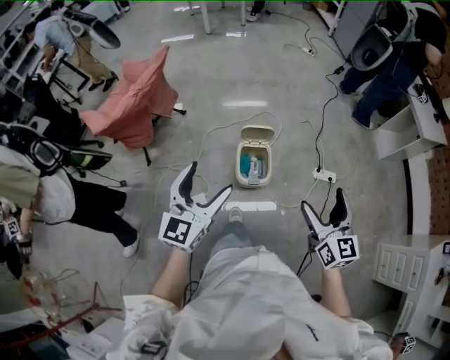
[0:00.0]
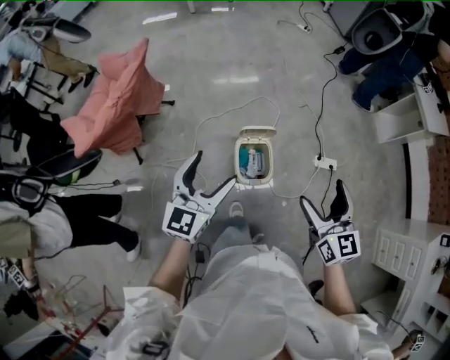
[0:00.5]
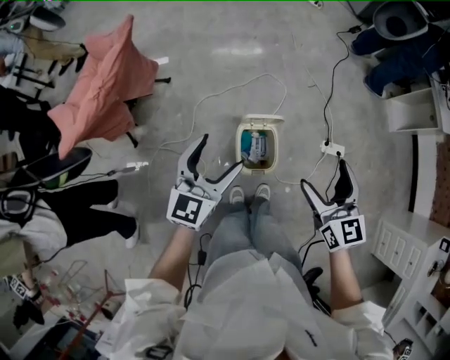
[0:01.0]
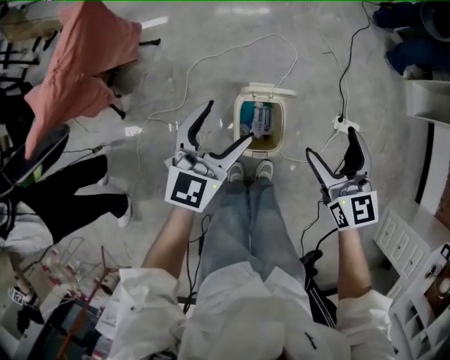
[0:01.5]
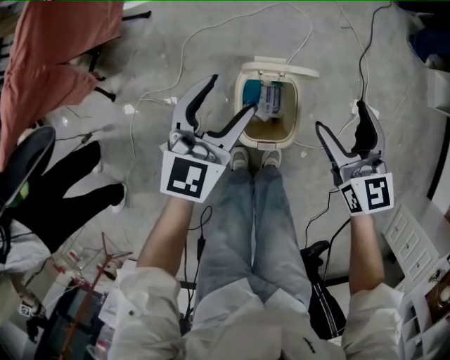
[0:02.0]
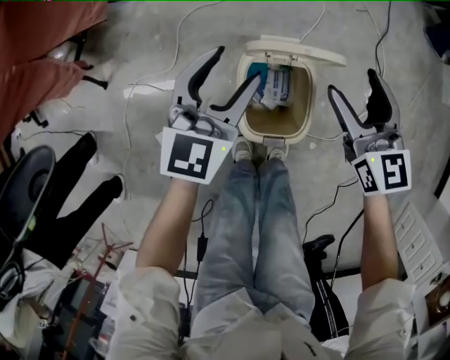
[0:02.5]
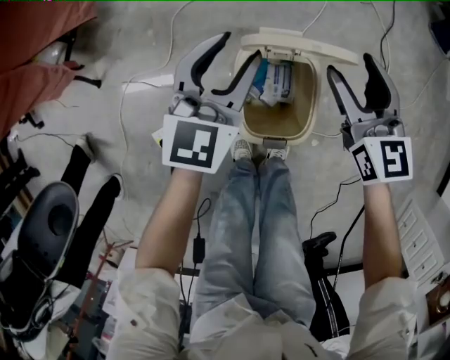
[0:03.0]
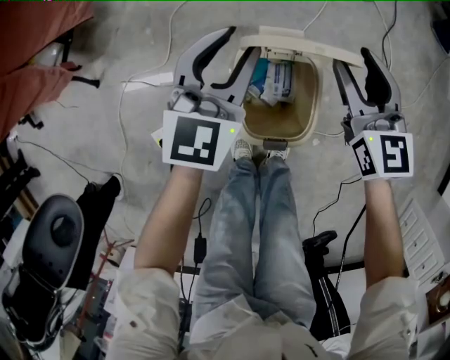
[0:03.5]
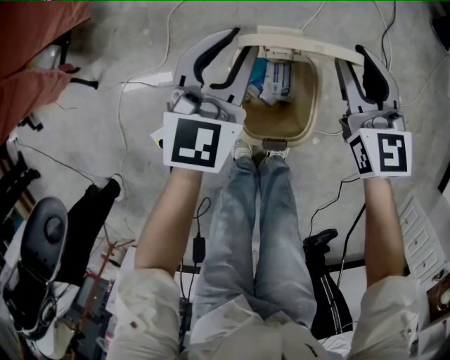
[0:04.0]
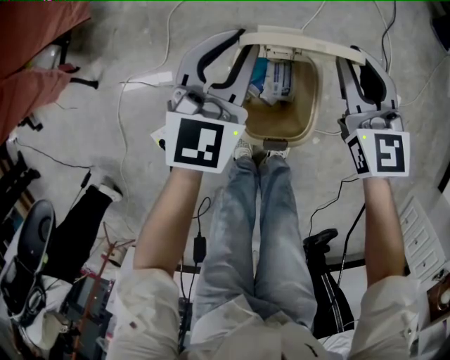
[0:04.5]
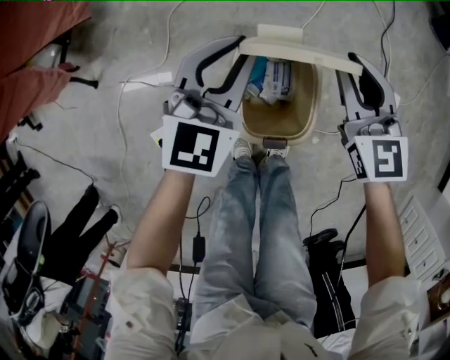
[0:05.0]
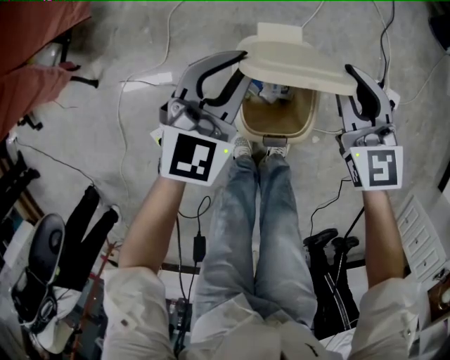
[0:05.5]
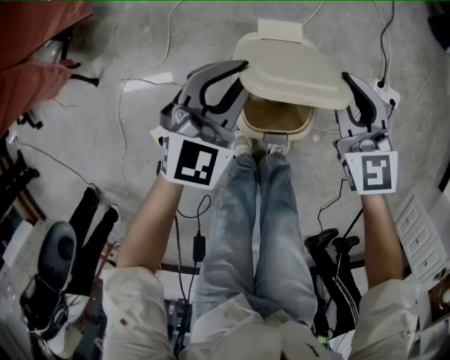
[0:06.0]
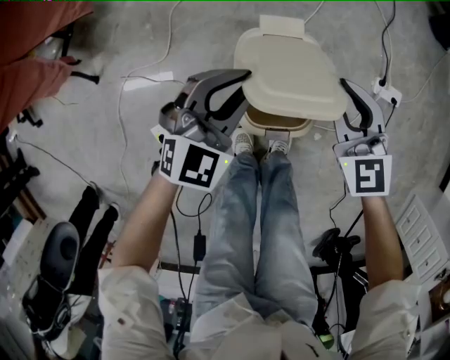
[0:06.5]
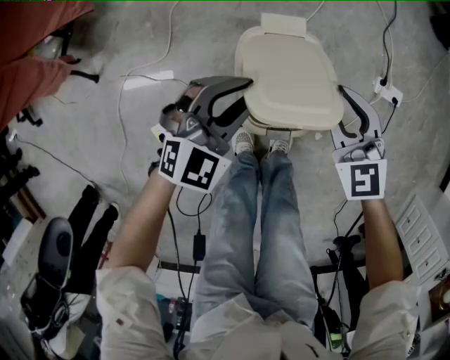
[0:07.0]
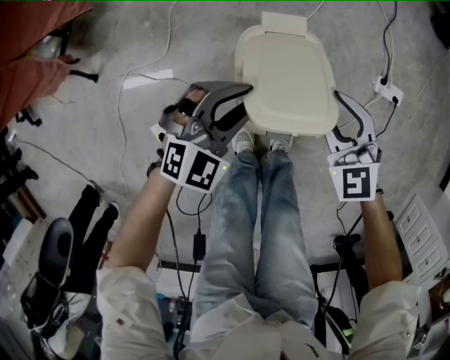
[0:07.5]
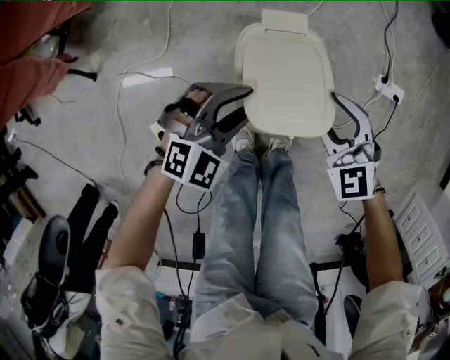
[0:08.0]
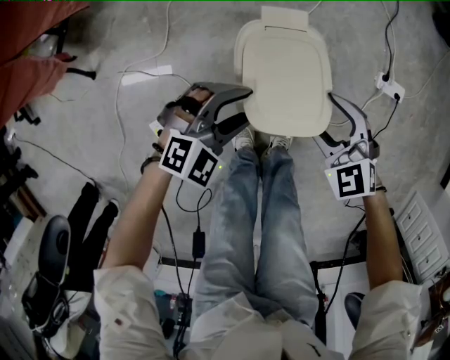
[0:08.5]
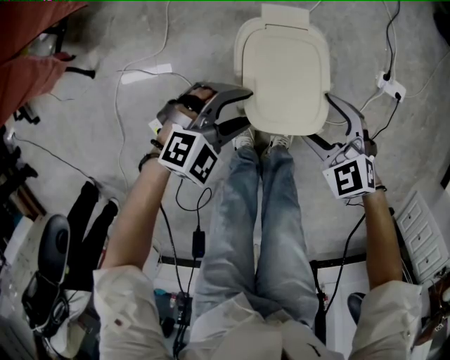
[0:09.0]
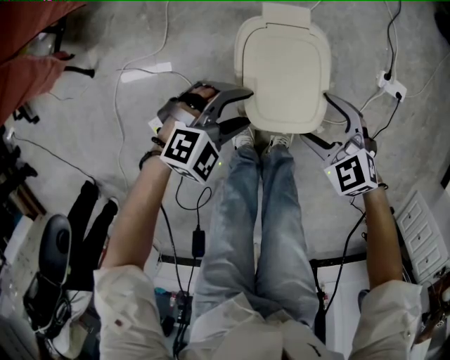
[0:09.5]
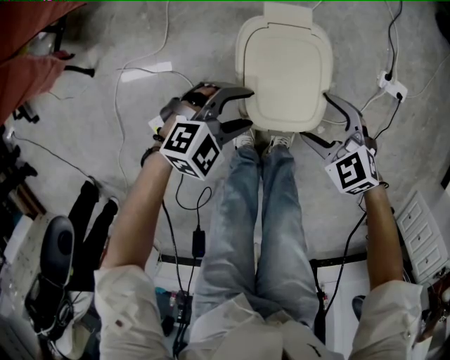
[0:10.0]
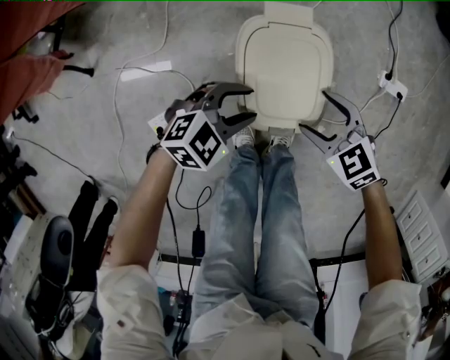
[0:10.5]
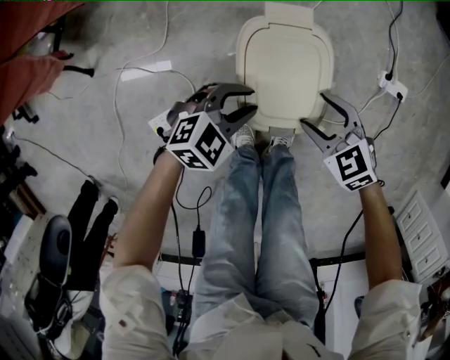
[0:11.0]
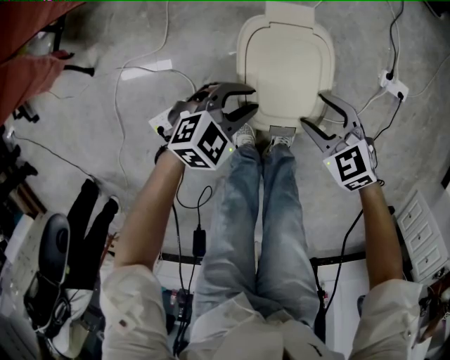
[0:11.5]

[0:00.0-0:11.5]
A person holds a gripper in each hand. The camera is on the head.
0:00.0 to 0:02.0: Both grippers travel together downward and forward, approximately 40 cm.
0:02.0 to 0:04.0: The two grippers go approximately 15 cm downward and forward. The left gripper closes. Meanwhile the right gripper closes up.
0:04.0 to 0:06.0: The two grippers go some 5 cm backward.
0:06.0 to 0:07.5: Both grippers move backward, roughly 5 cm.
0:07.5 to 0:09.5: Both grippers travel together downward, approximately 5 cm. The left gripper changes its angle by roughly 20 degrees; the right gripper changes its angle by roughly 20 degrees, and opens up.
0:09.5 to 0:11.5: The left gripper swivels about 20 degrees.

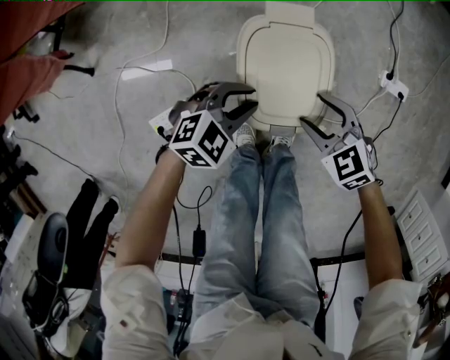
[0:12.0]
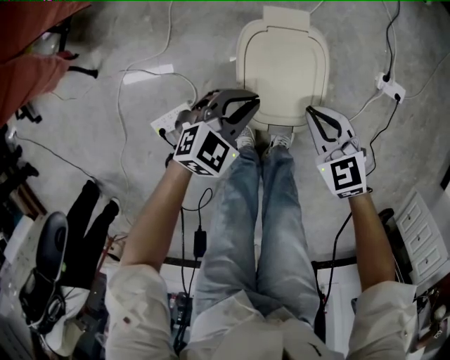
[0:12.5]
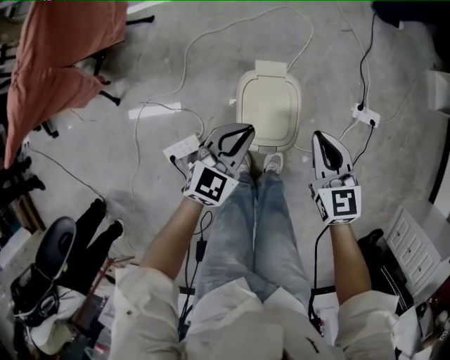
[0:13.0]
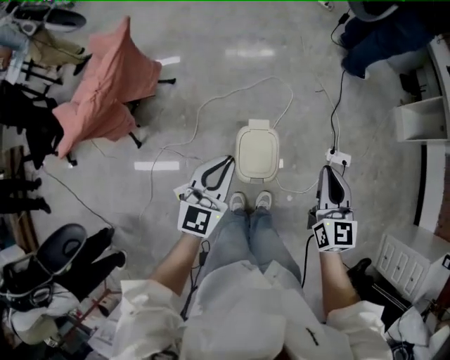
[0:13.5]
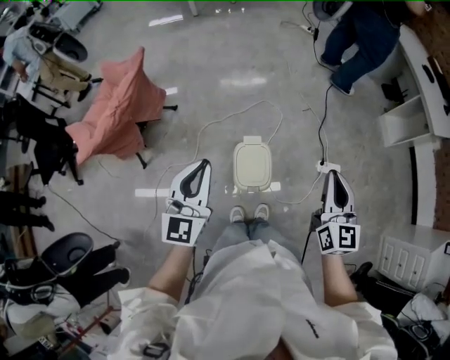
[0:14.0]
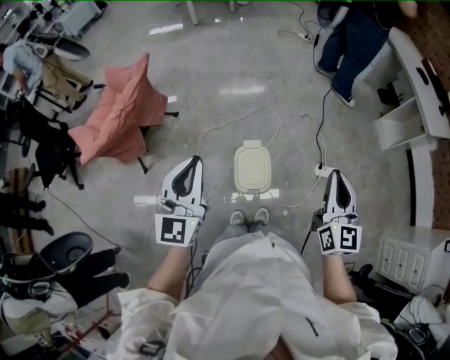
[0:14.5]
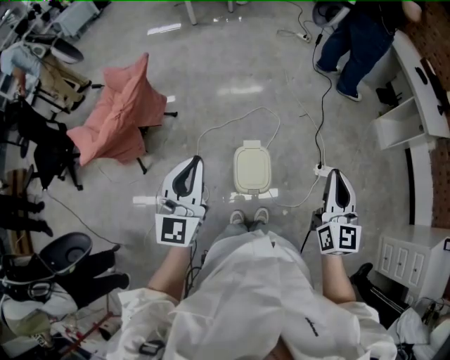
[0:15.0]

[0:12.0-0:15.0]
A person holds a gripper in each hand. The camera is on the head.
0:12.0 to 0:13.5: Both grippers move upward, some 50 cm. The left gripper tilts its fingers approximately 40 degrees upward. The right gripper points its fingers approximately 40 degrees further upward, and closes.
0:13.5 to 0:15.0: Both grippers move upward and backward, about 20 cm.

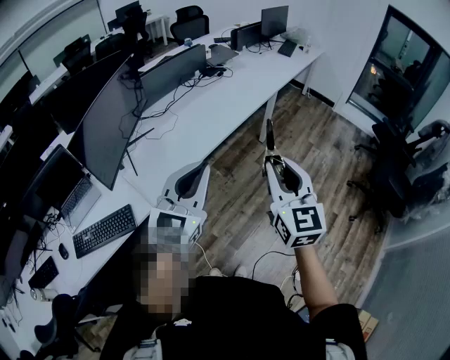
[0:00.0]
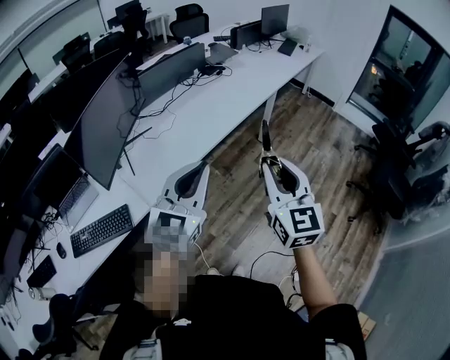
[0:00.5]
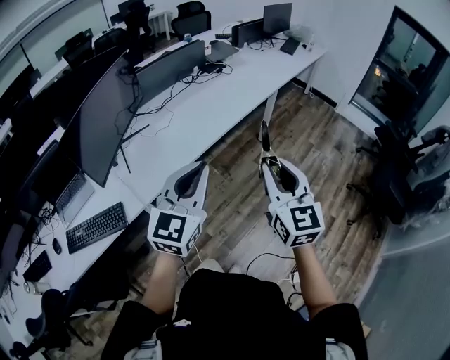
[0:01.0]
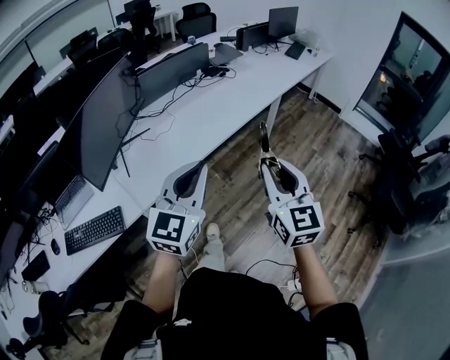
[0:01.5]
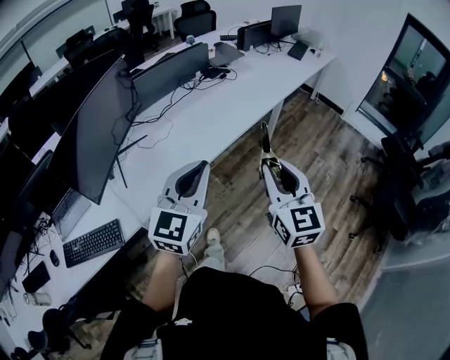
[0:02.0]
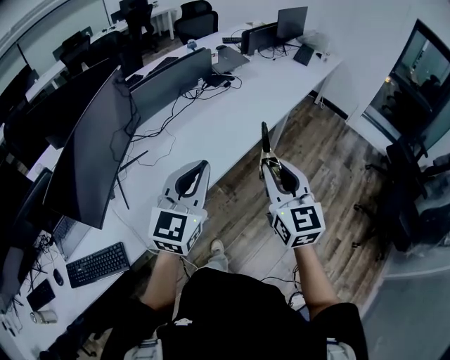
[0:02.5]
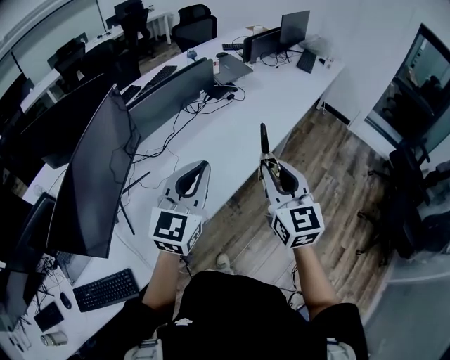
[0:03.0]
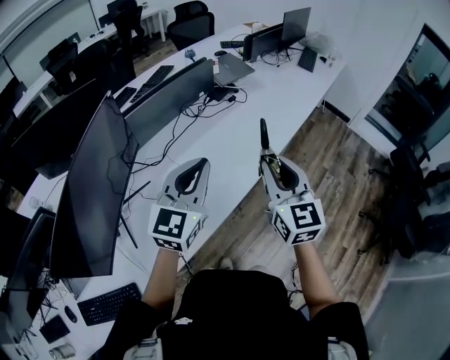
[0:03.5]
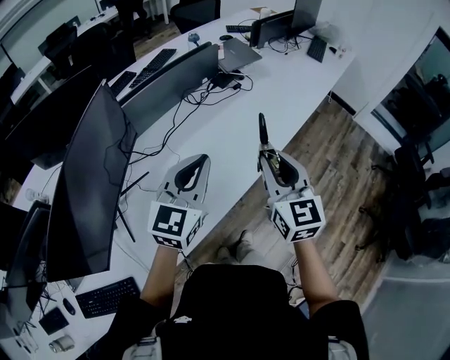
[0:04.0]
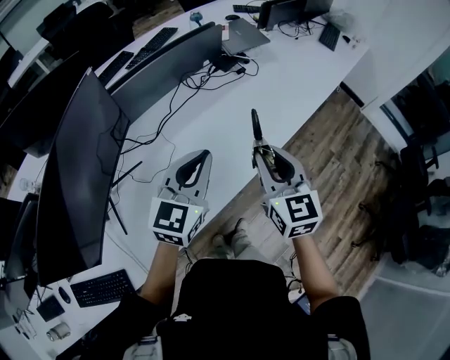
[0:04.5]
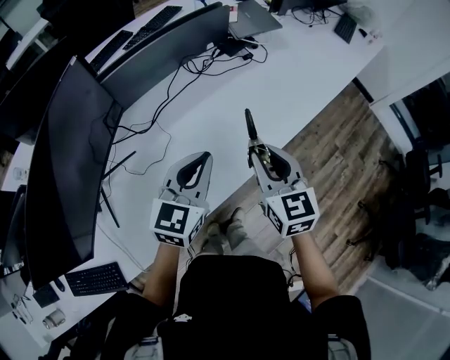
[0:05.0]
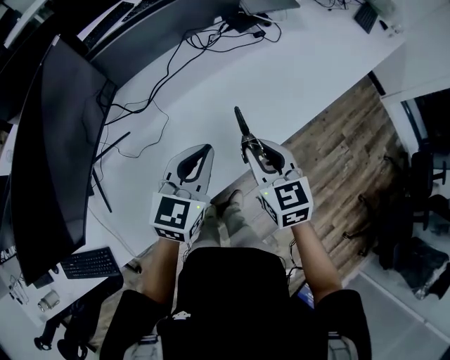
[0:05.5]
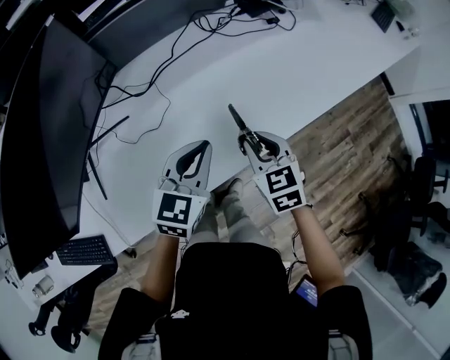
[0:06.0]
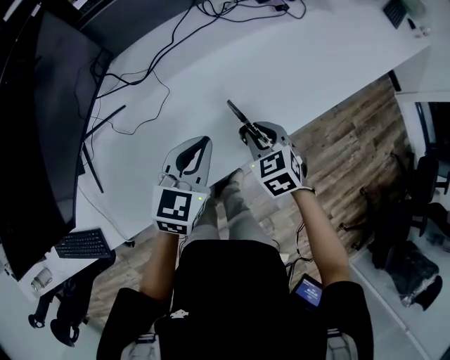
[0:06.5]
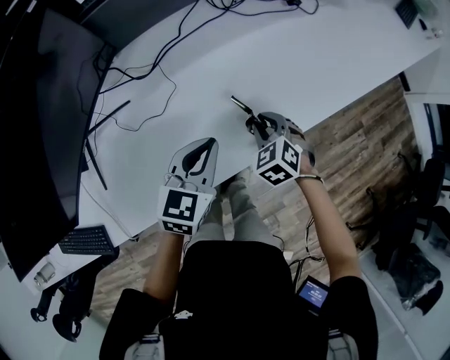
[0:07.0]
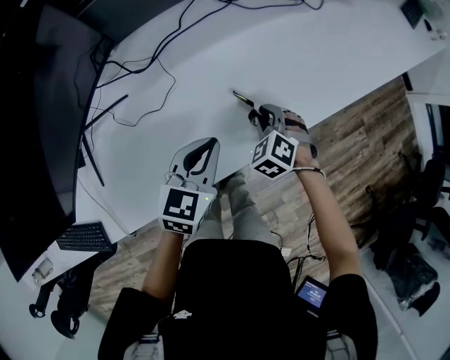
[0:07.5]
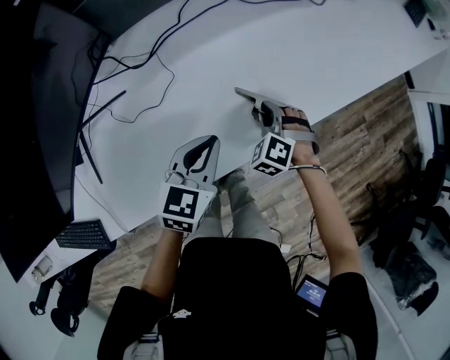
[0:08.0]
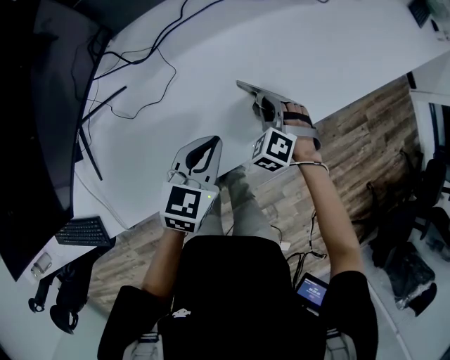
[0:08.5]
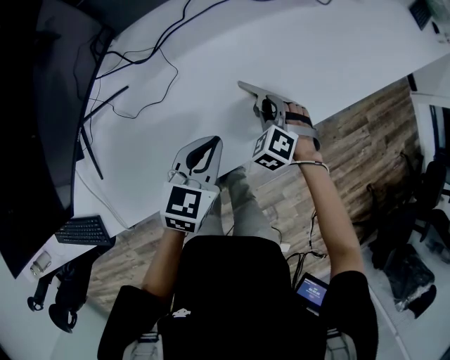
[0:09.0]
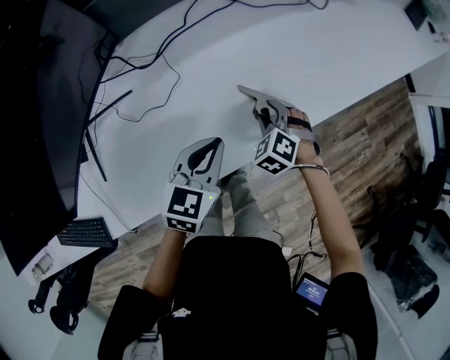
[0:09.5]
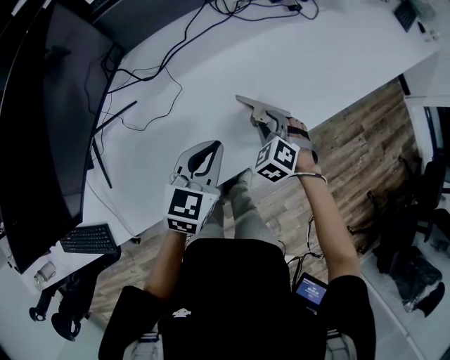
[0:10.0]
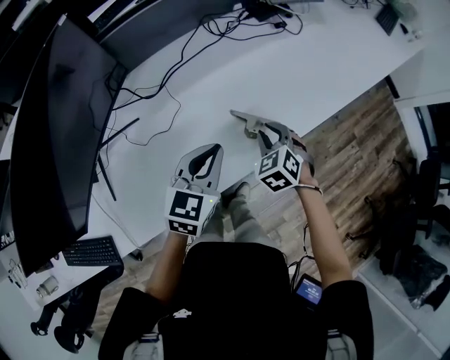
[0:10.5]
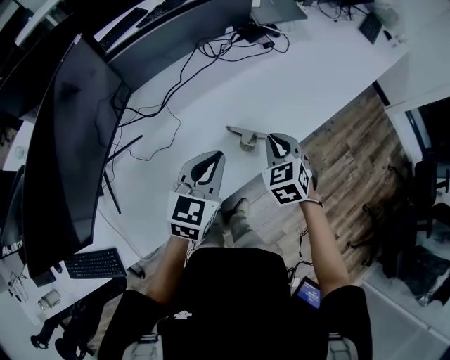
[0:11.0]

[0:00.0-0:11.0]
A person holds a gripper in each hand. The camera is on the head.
0:00.0 to 0:02.0: The grippers both shift forward by approximately 15 cm.
0:02.0 to 0:03.5: The grippers both shift forward by about 30 cm.
0:03.5 to 0:05.5: The two grippers go some 25 cm downward and forward. The left gripper changes its angle by roughly 20 degrees; the right gripper swivels roughly 30 degrees.
0:05.5 to 0:07.5: The right gripper heads downward, covering approximately 20 cm, and twists some 40 degrees counterclockwise, seen from behind. Meanwhile the left gripper goes about 15 cm downward.
0:07.5 to 0:09.0: The grippers stay close to where they were, moving slightly.
0:09.0 to 0:11.0: Both grippers travel together upward, about 15 cm. The right gripper changes its angle by roughly 40 degrees, and closes up.

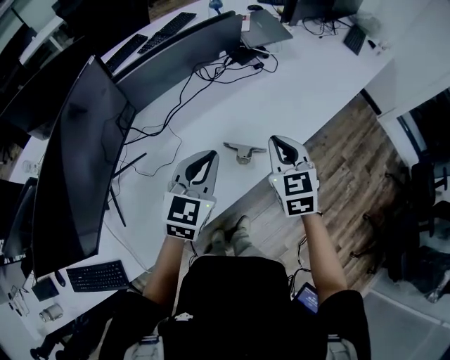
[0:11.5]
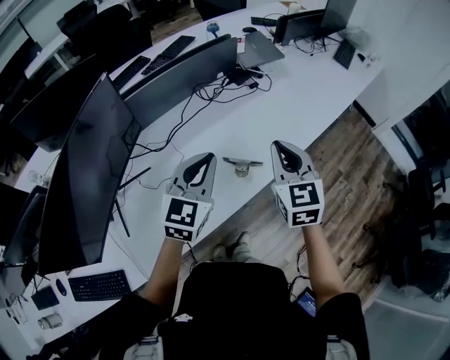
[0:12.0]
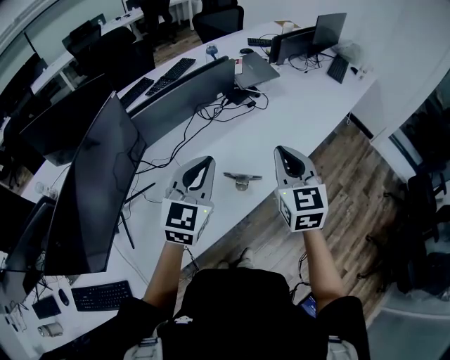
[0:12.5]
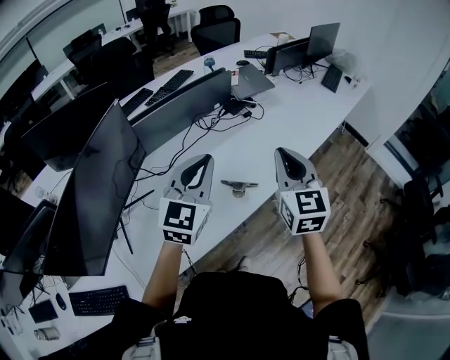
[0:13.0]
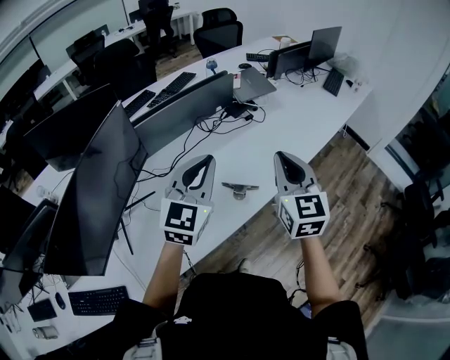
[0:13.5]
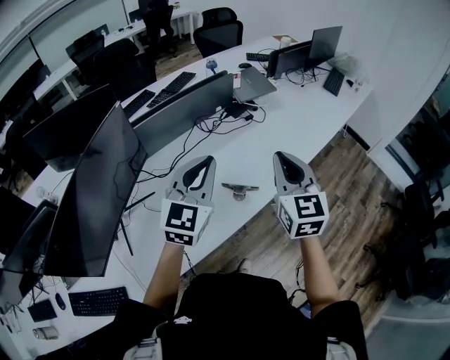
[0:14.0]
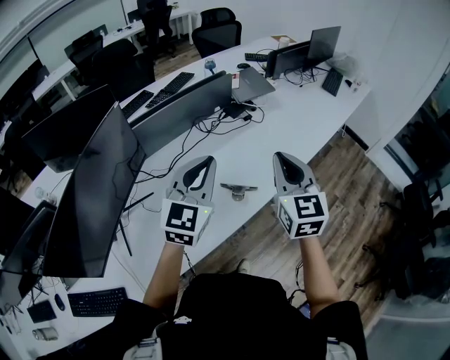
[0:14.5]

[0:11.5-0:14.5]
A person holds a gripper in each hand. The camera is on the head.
0:11.5 to 0:13.0: Both grippers travel together upward, some 15 cm. The right gripper changes its angle by approximately 20 degrees.
0:13.0 to 0:14.5: Both grippers stay put.
